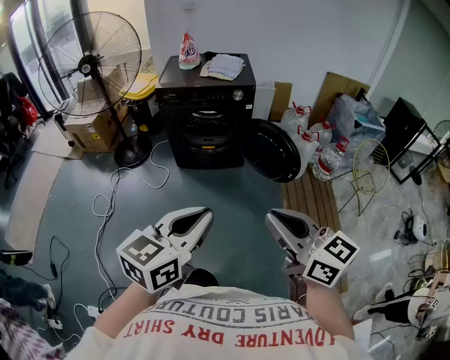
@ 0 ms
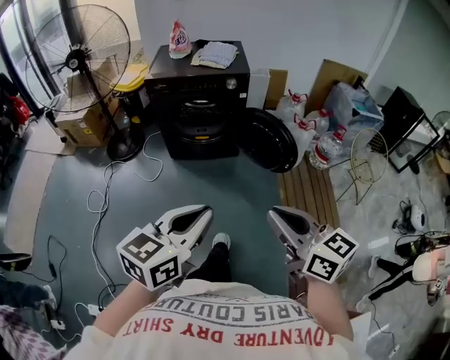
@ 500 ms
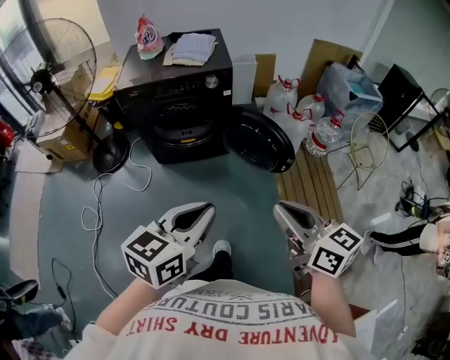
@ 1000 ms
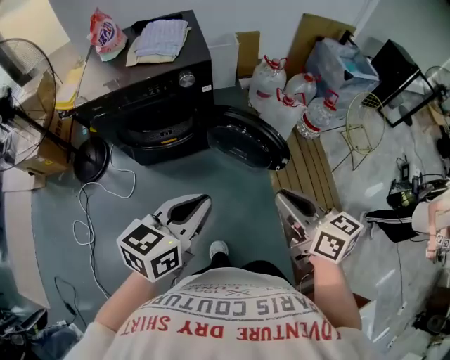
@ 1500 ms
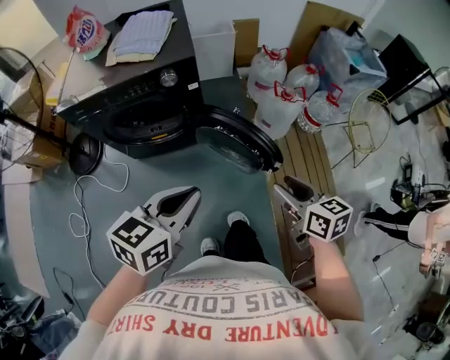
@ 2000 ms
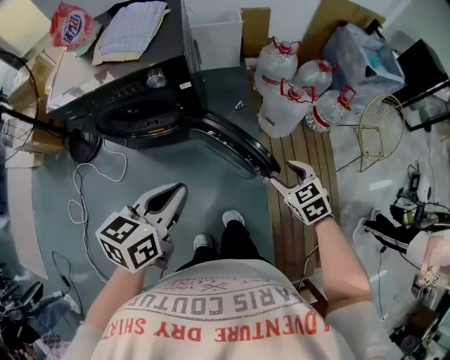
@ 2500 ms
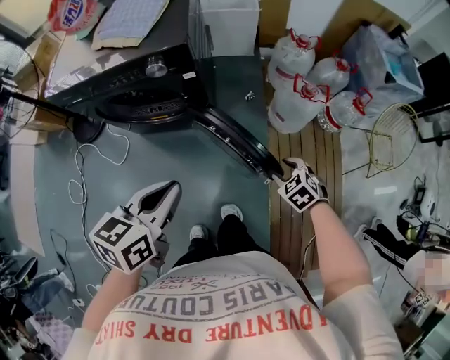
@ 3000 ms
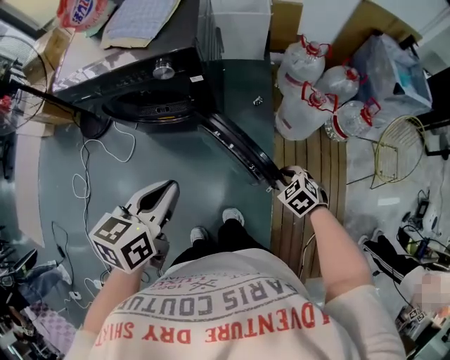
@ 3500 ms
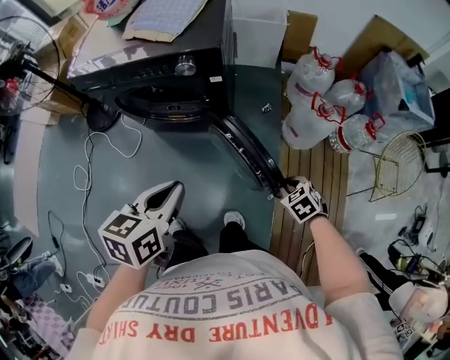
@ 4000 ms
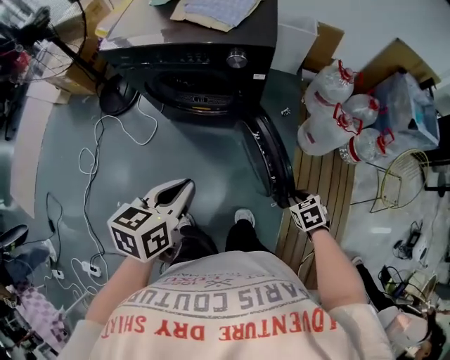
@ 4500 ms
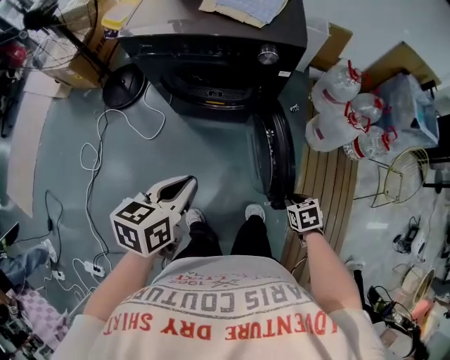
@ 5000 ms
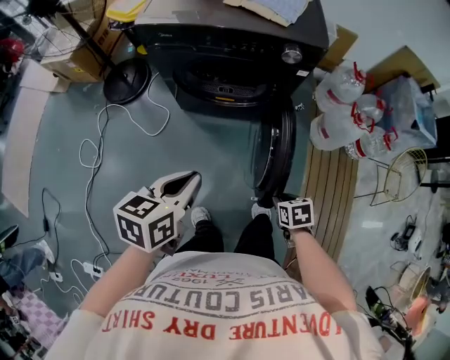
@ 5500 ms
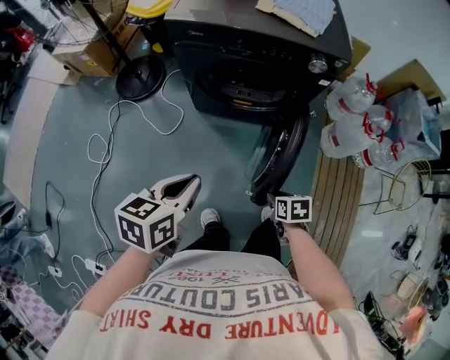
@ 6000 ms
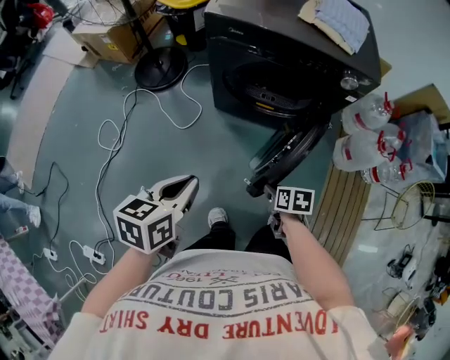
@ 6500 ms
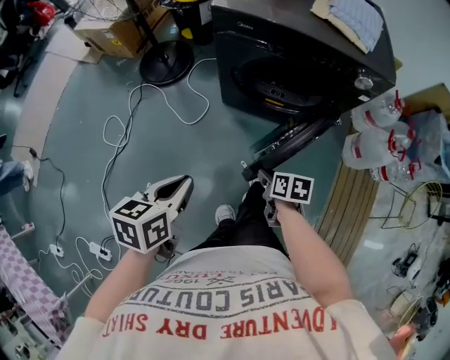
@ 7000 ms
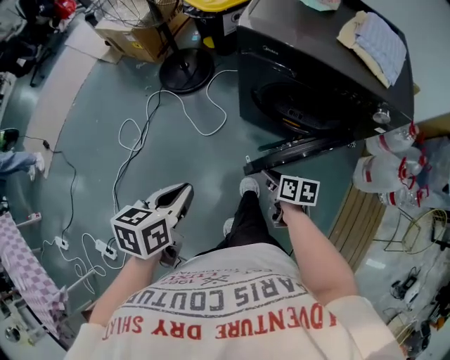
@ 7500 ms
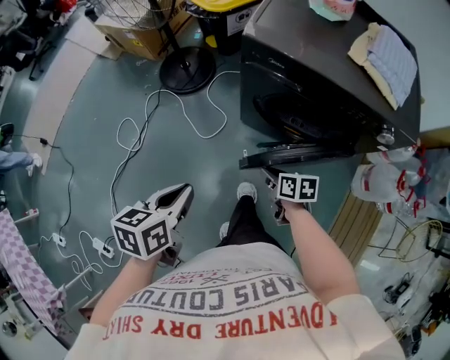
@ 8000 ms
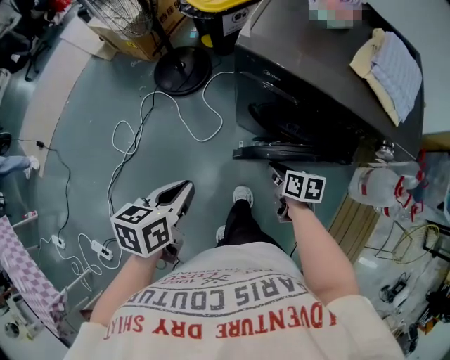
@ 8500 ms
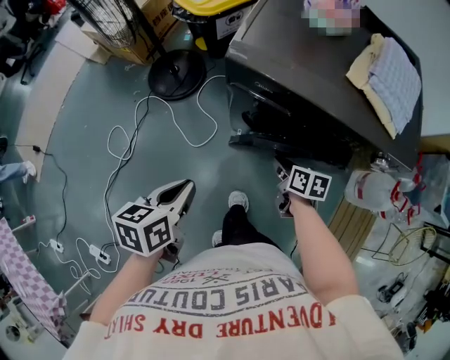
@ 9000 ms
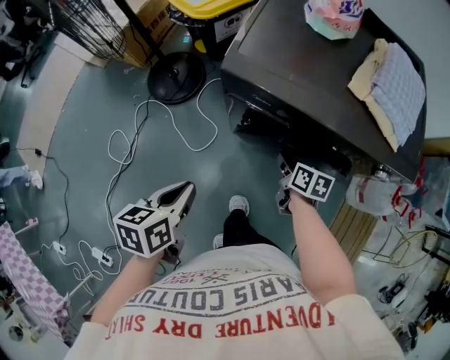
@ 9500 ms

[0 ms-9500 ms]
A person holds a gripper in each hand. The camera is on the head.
0 ms to 2000 ms: Both grippers are carried forward, approximately 40 cm. The left gripper turns by about 20 degrees. Meanwhile the right gripper moves downward, roughly 25 cm, changes its angle by roughly 40 degrees, and opens.
2000 ms to 4000 ms: The right gripper shifts roughly 25 cm downward and forward, tilts its fingers roughly 40 degrees downward, and closes its fingers. Meanwhile the left gripper shifts approximately 10 cm forward and downward, and turns by roughly 30 degrees.
4000 ms to 5500 ms: The two grippers go some 25 cm to the left. The right gripper turns by some 30 degrees.
5500 ms to 7500 ms: The right gripper goes approximately 35 cm to the left and forward, and swivels approximately 30 degrees, while the left gripper shifts some 25 cm to the left, and changes its angle by about 20 degrees.
7500 ms to 9500 ms: The left gripper is displaced forward by approximately 15 cm, while the right gripper travels forward and to the right by approximately 25 cm.

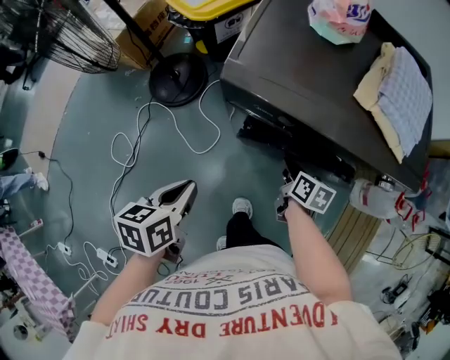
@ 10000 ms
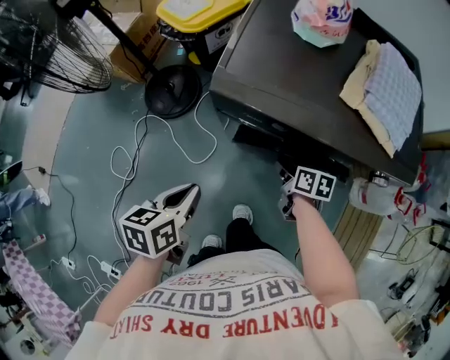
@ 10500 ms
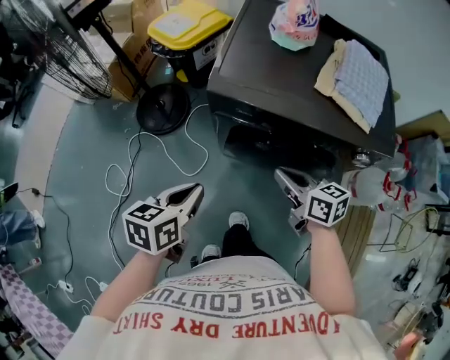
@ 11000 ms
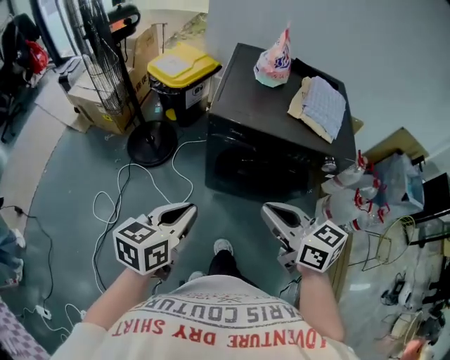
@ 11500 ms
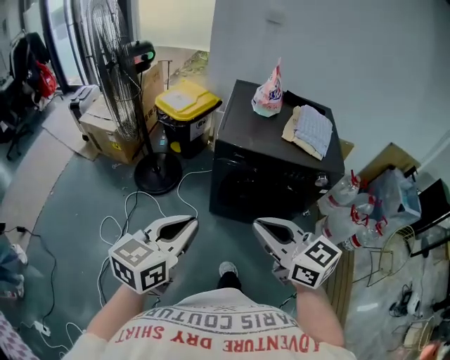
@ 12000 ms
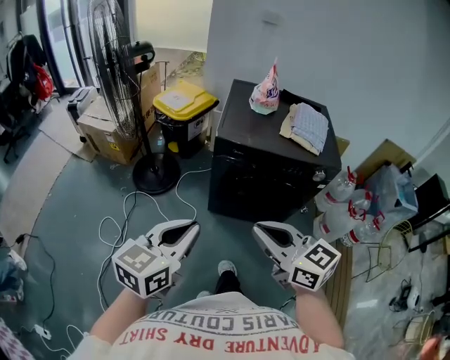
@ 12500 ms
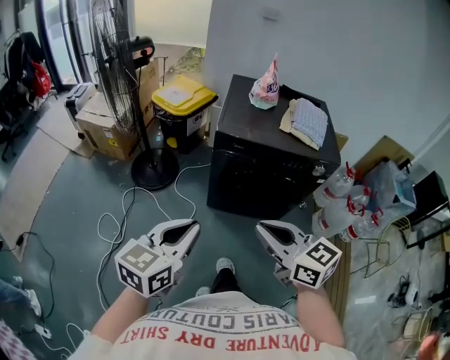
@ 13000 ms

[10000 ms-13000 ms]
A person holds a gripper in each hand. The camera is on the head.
10000 ms to 11500 ms: The right gripper travels upward and backward by approximately 35 cm, and turns by roughly 40 degrees, while the left gripper goes roughly 15 cm upward and backward, and swivels roughly 30 degrees.
11500 ms to 13000 ms: The right gripper shifts roughly 10 cm backward, to the left and upward. Meanwhile the left gripper goes about 10 cm backward and upward.

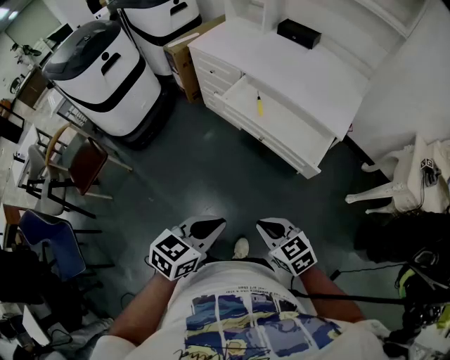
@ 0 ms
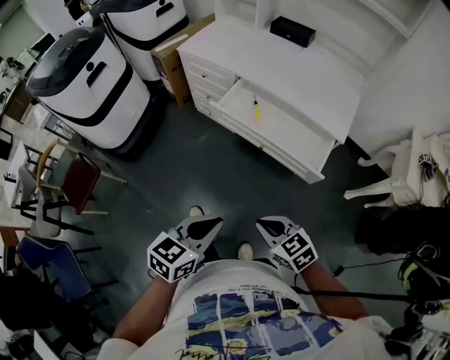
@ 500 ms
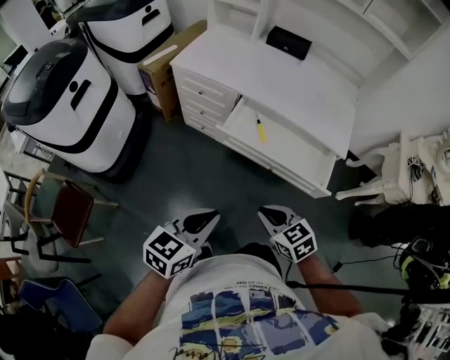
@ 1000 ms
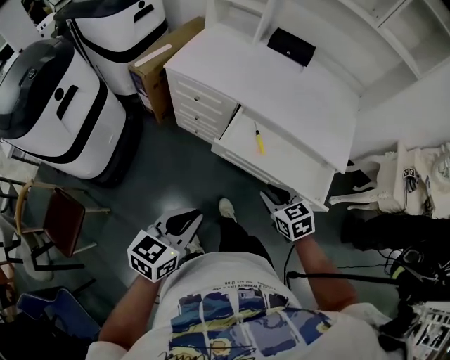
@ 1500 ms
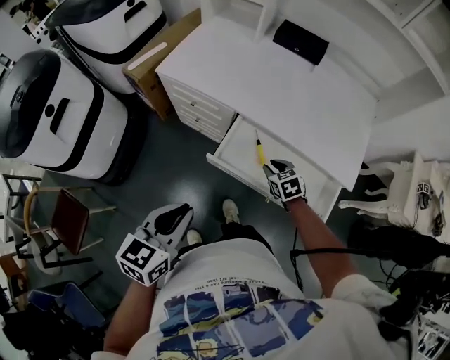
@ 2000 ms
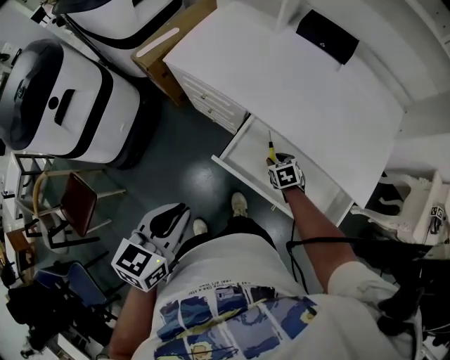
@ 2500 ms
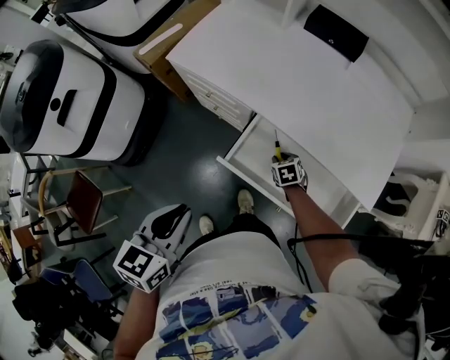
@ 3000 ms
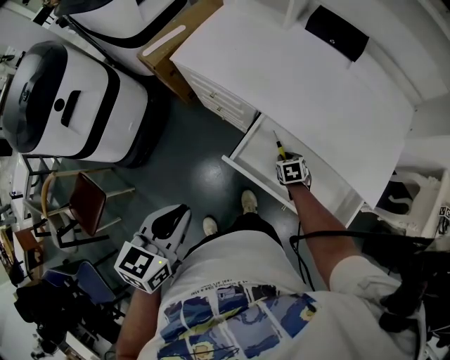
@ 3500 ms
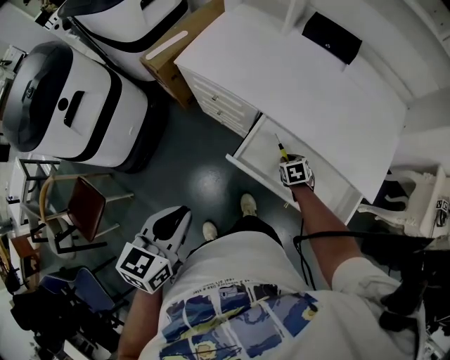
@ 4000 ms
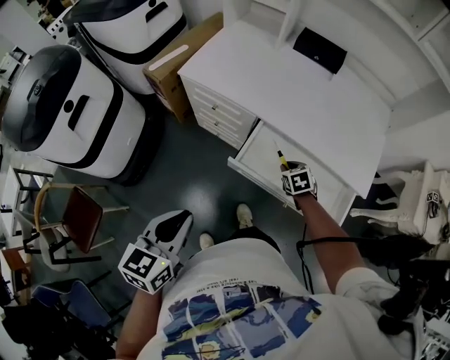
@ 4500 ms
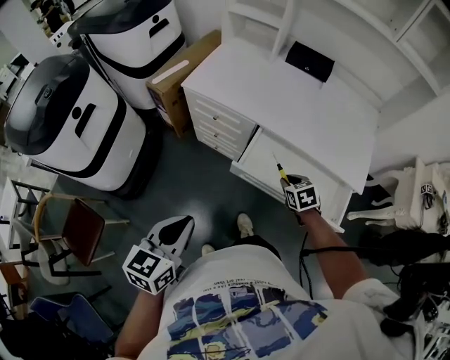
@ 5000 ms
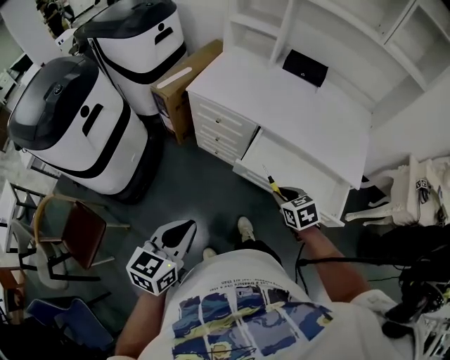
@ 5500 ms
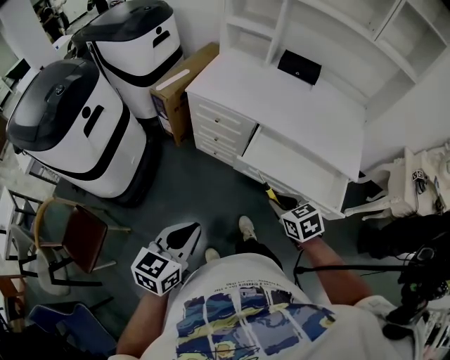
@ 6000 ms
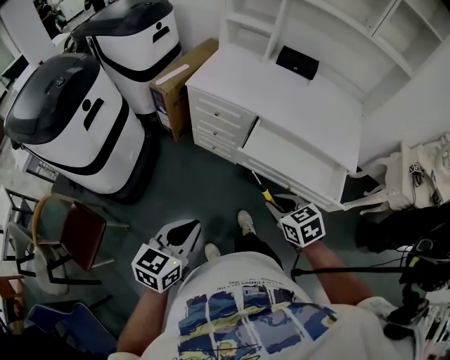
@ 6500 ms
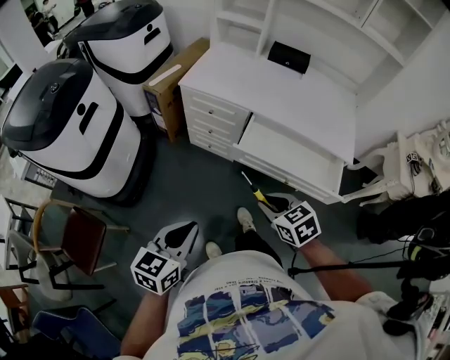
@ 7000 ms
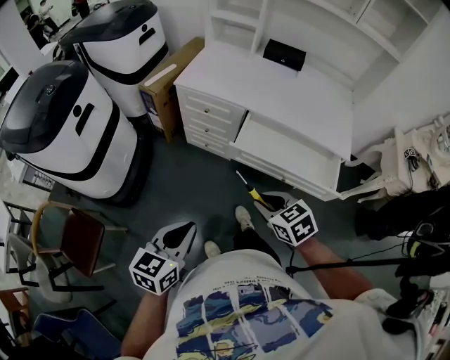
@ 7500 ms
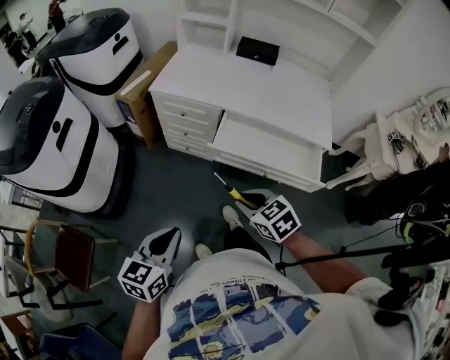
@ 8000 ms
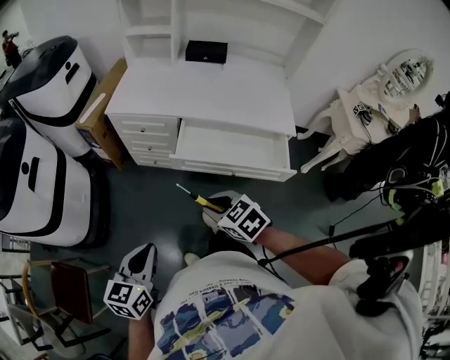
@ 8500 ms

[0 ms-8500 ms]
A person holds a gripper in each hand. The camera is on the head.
0 ms to 2000 ms: The left gripper travels forward and to the left by some 40 cm; the right gripper moves forward, roughly 50 cm, swivels roughly 30 degrees, and opens.
2000 ms to 4000 ms: The right gripper moves downward, roughly 10 cm.
4000 ms to 6500 ms: The left gripper heads backward and to the left, covering approximately 20 cm; the right gripper moves backward, upward and to the left, roughly 40 cm.
6500 ms to 8500 ms: The grippers move only a little.

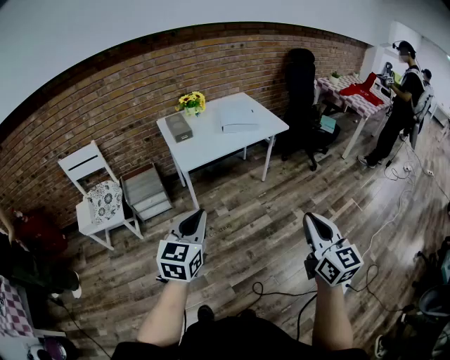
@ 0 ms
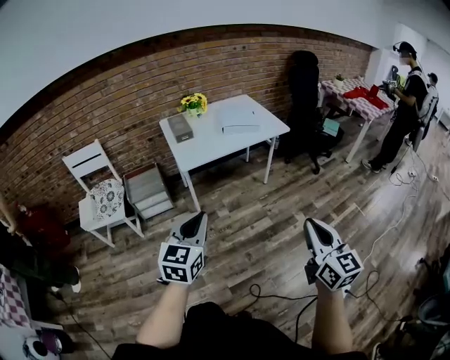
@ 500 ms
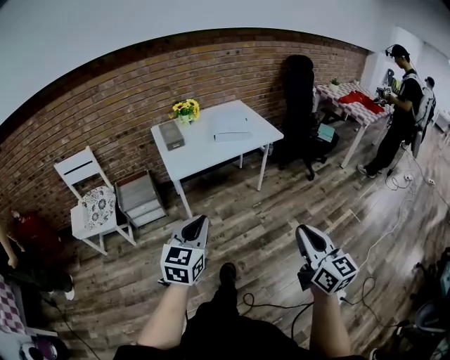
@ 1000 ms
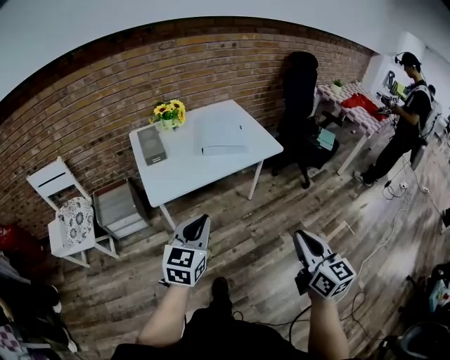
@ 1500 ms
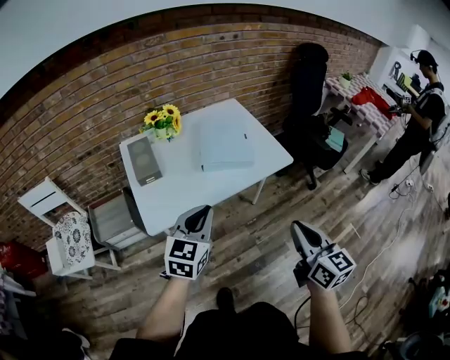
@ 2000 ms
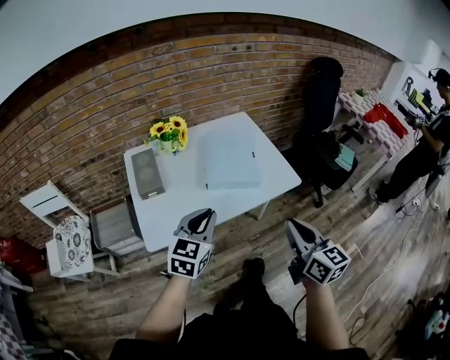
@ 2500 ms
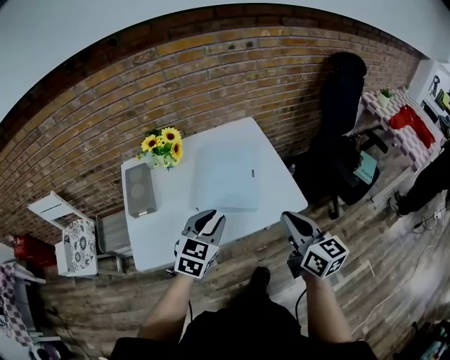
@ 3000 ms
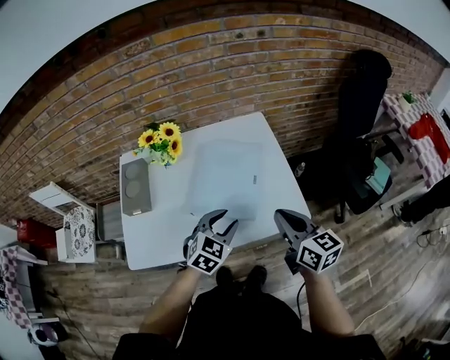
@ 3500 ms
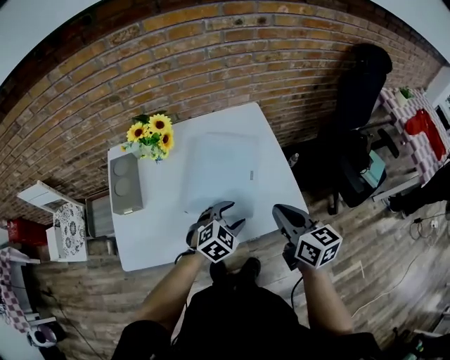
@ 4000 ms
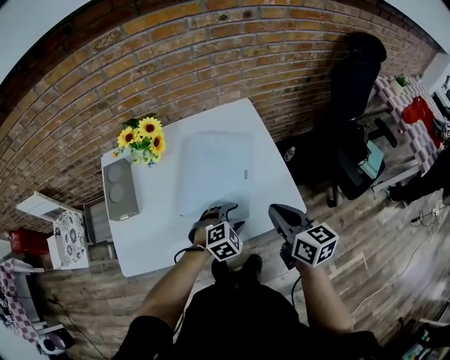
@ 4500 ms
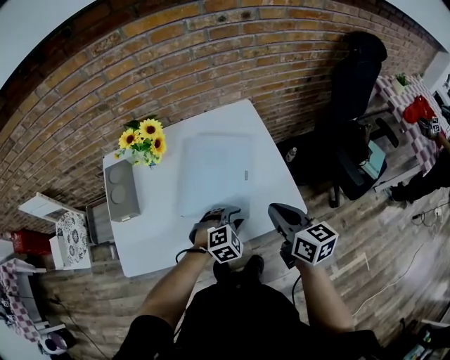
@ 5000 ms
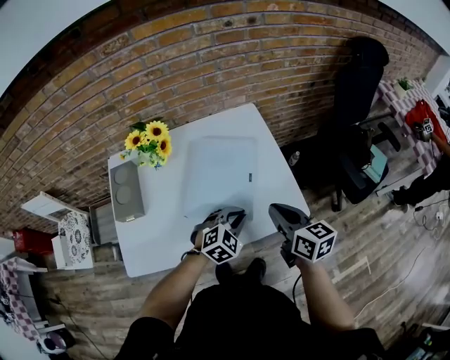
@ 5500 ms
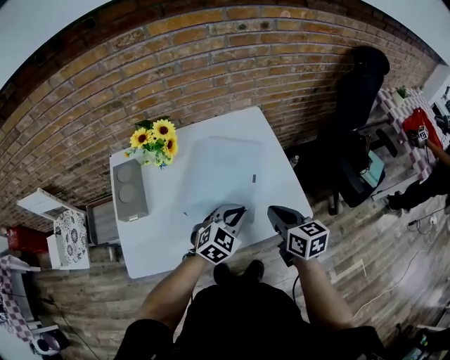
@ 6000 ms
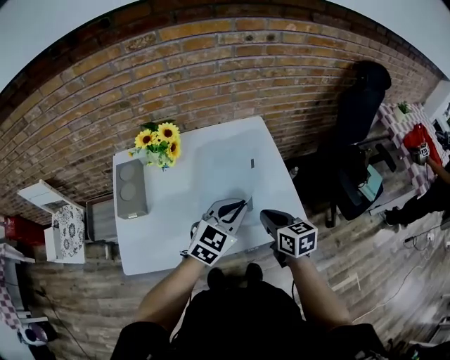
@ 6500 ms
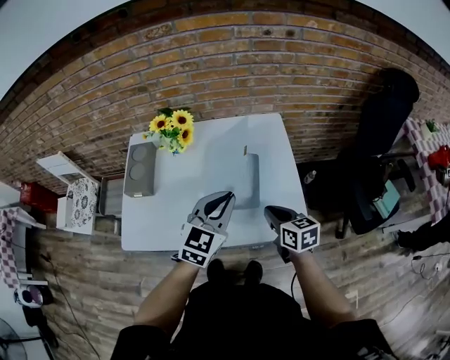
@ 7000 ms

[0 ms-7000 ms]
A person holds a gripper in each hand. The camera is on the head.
0 ms to 2000 ms: The two grippers go some 40 cm forward.
2000 ms to 3500 ms: The left gripper goes roughly 30 cm forward, to the right and downward, swivels approximately 30 degrees, and opens its fingers. Meanwhile the right gripper goes roughly 35 cm forward, and rotates about 20 degrees.
3500 ms to 5000 ms: The left gripper heads downward and to the right, covering approximately 10 cm, swivels roughly 30 degrees, and opens and closes again.
5000 ms to 7000 ms: The right gripper is displaced downward by approximately 5 cm. Meanwhile the left gripper goes roughly 20 cm upward, angles its fingers upward, by about 40 degrees, and closes.
